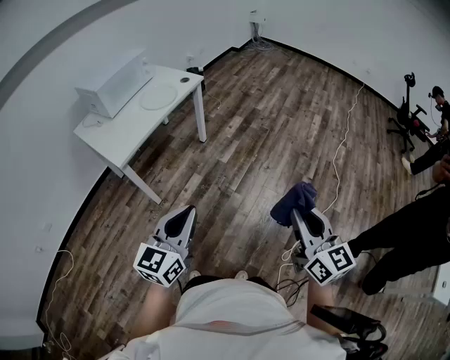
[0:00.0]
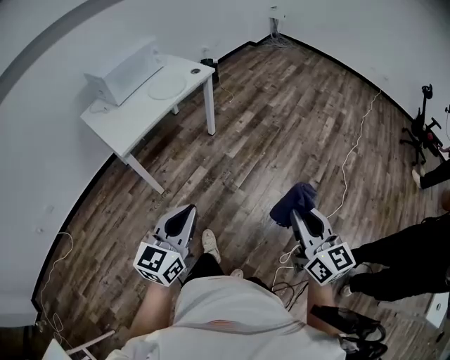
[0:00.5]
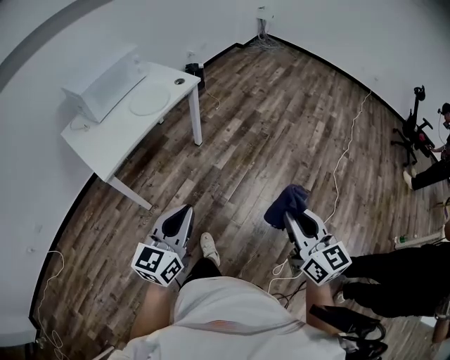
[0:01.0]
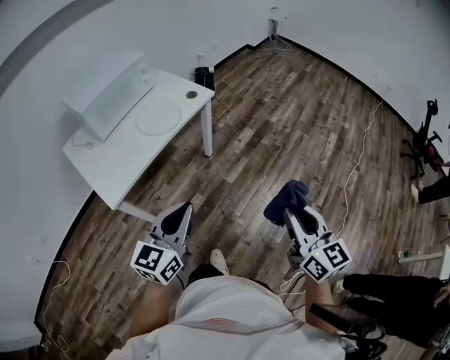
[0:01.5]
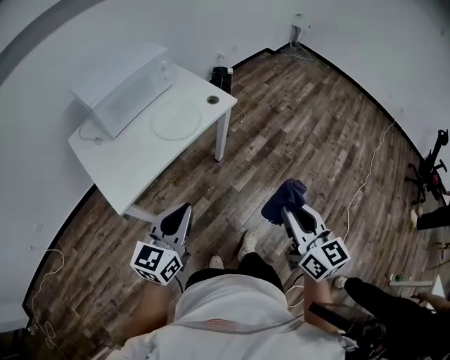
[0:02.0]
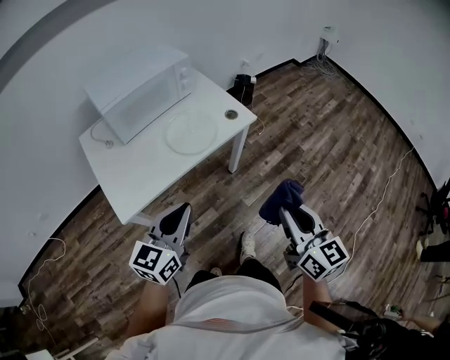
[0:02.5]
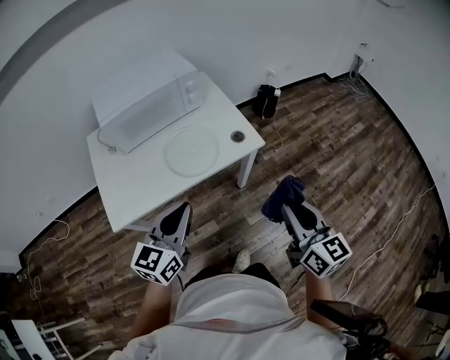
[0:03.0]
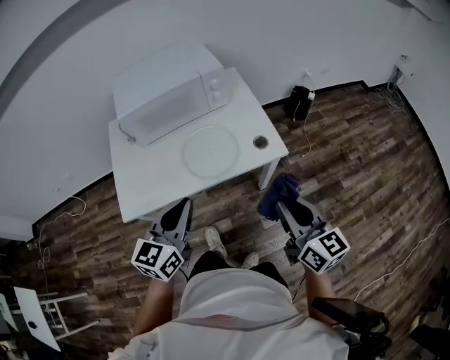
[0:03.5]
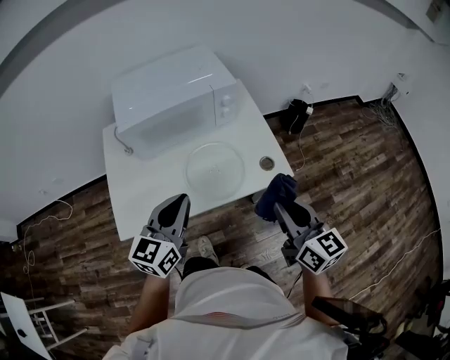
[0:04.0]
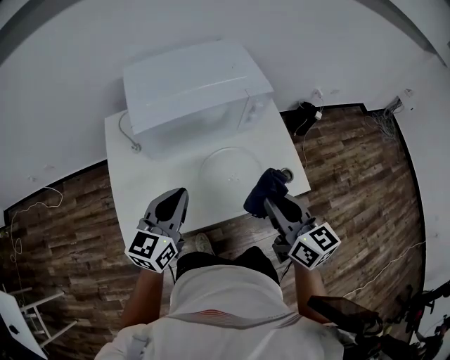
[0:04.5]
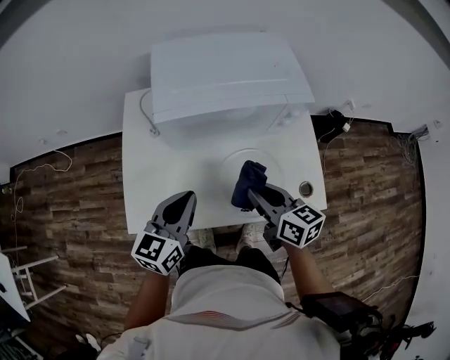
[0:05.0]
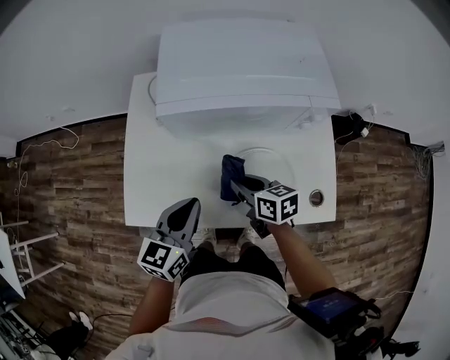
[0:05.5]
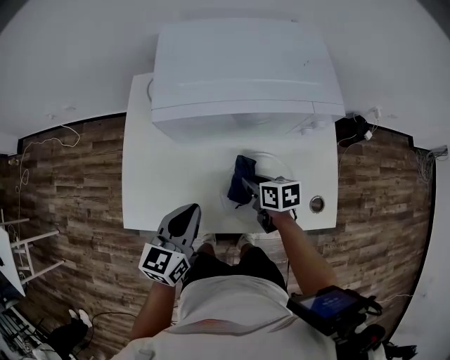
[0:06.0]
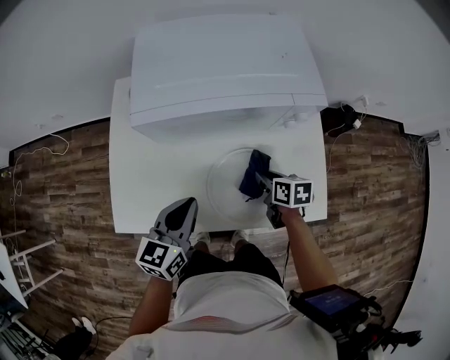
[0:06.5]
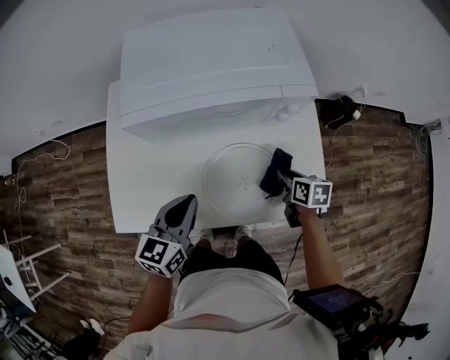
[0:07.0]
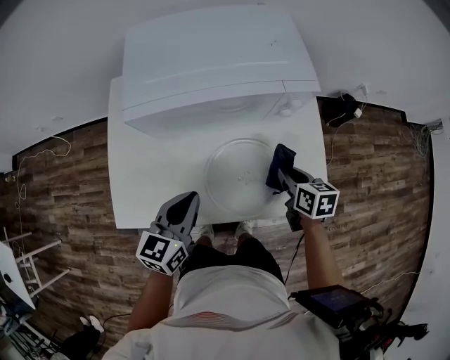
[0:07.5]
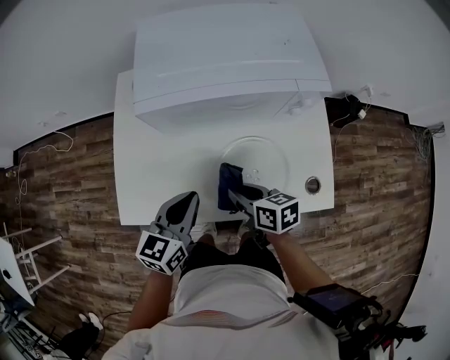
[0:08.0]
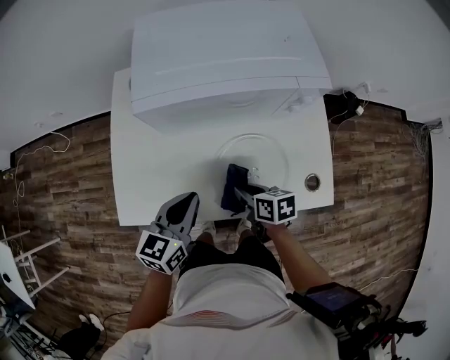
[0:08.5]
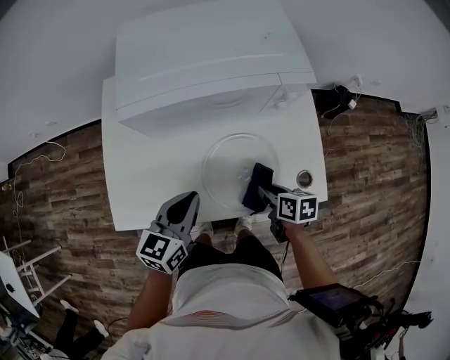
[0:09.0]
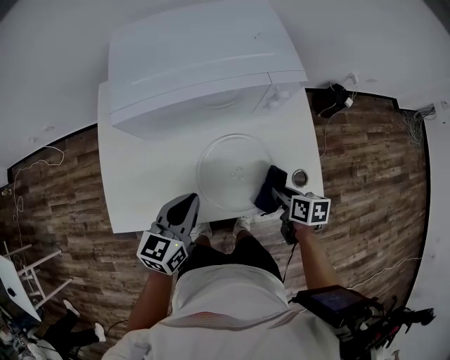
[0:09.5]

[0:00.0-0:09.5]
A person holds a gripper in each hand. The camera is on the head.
0:00.0 to 0:02.0: Both grippers move forward, roughly 40 cm.
0:02.0 to 0:04.0: The left gripper shifts by about 30 cm, and turns by approximately 30 degrees. Meanwhile the right gripper changes place by roughly 40 cm, and swivels some 30 degrees.
0:04.0 to 0:05.5: The left gripper ends up roughly 20 cm from where it was, and swivels about 20 degrees. The right gripper moves roughly 40 cm, and rotates about 50 degrees.
0:05.5 to 0:07.5: The right gripper shifts some 20 cm to the right, and swivels some 20 degrees. Meanwhile the left gripper heads to the right, covering approximately 5 cm.
0:07.5 to 0:09.5: The right gripper is displaced backward by about 10 cm, and travels to the left and back again, about 20 cm each way.

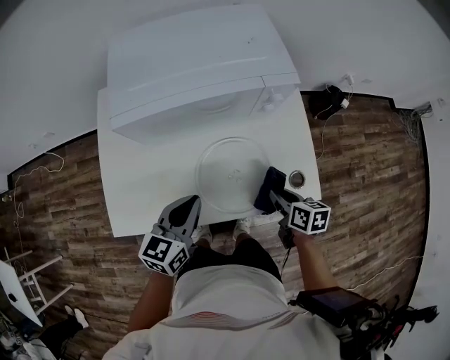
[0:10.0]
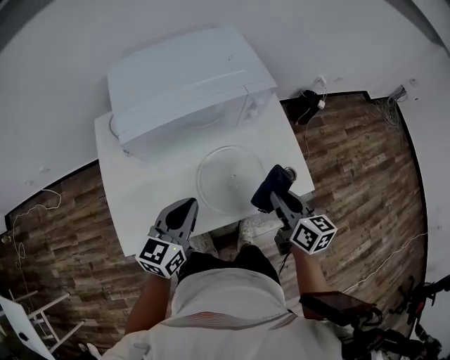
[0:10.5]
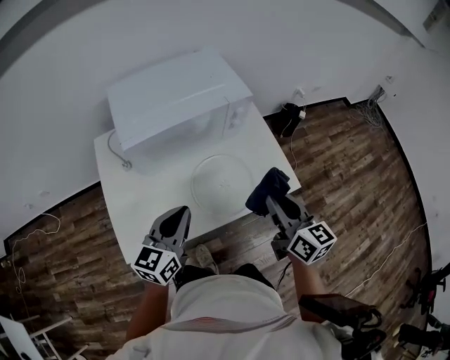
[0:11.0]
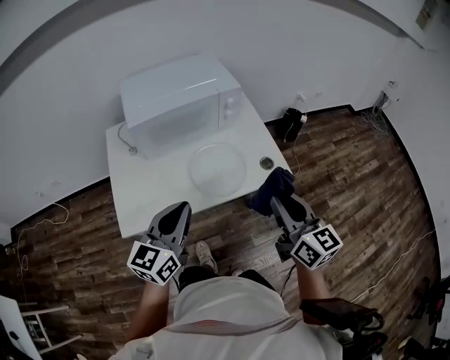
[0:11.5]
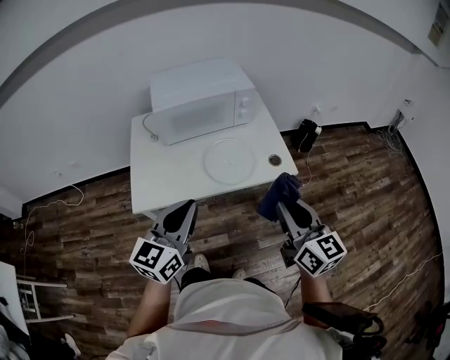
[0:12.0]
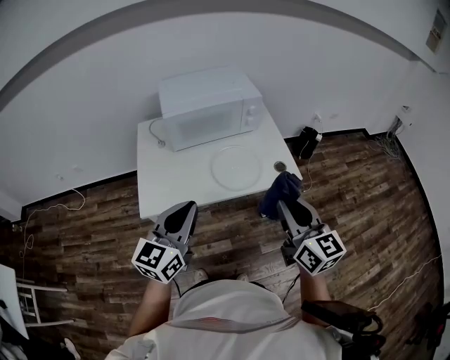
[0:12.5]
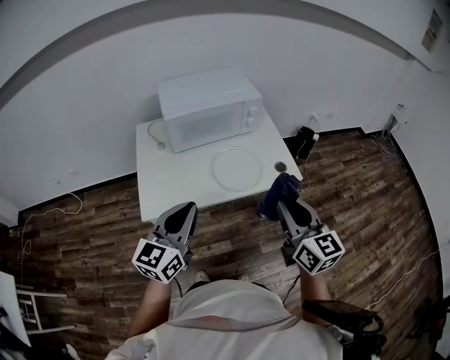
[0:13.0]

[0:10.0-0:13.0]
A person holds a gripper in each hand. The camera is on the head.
0:10.0 to 0:11.5: The left gripper shifts some 20 cm backward and upward; the right gripper heads upward and backward, covering some 35 cm, and tips its fingers upward by roughly 40 degrees.
0:11.5 to 0:13.0: The right gripper goes about 10 cm backward, while the left gripper heads backward, to the left and upward, covering some 10 cm.

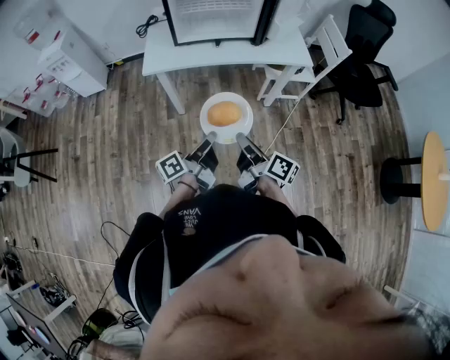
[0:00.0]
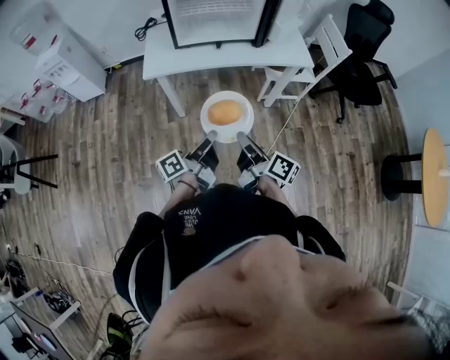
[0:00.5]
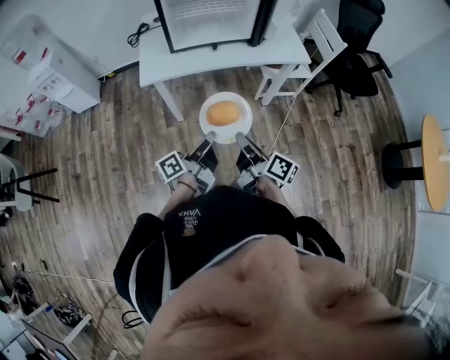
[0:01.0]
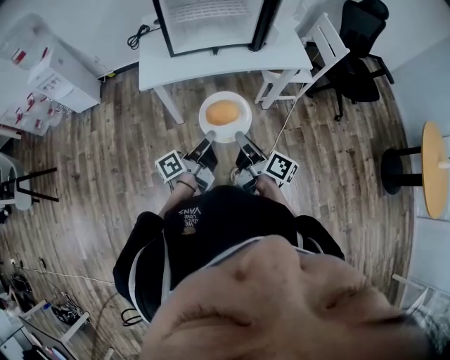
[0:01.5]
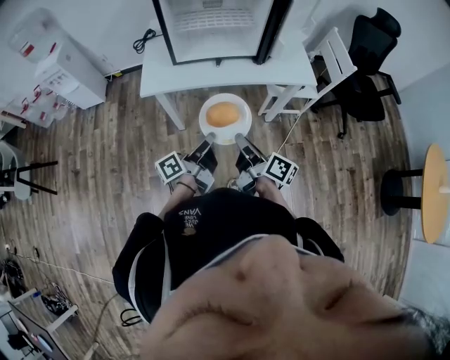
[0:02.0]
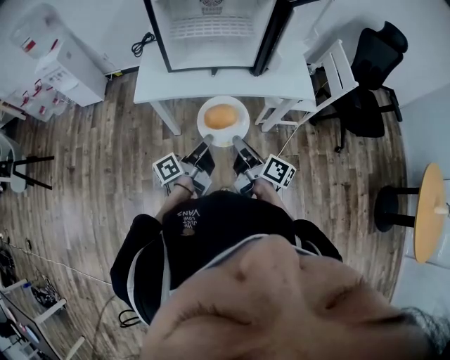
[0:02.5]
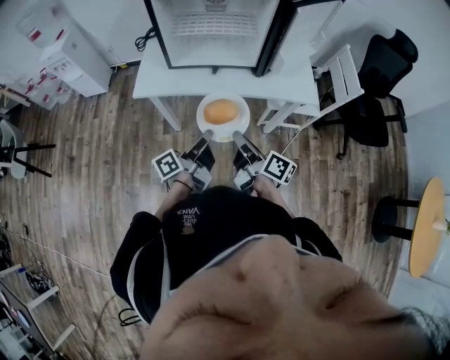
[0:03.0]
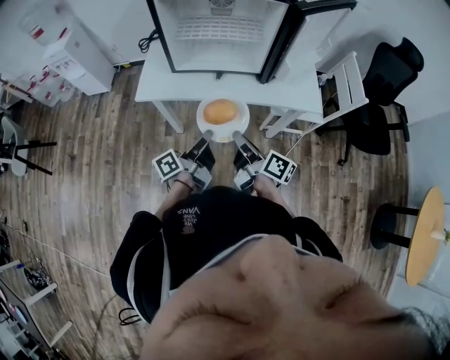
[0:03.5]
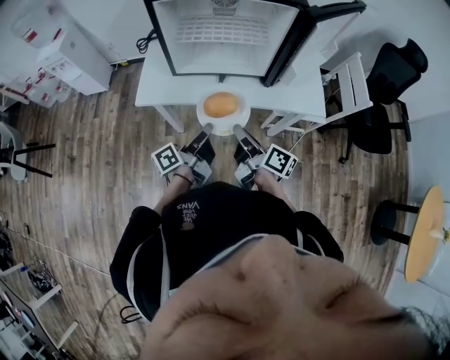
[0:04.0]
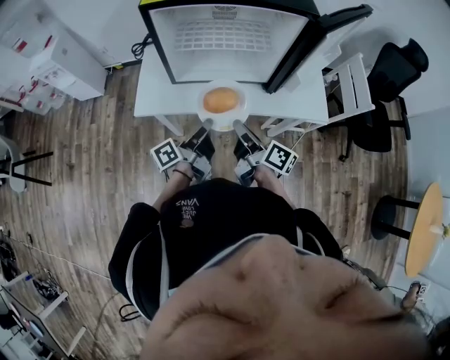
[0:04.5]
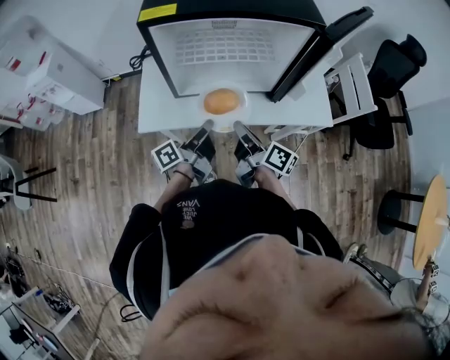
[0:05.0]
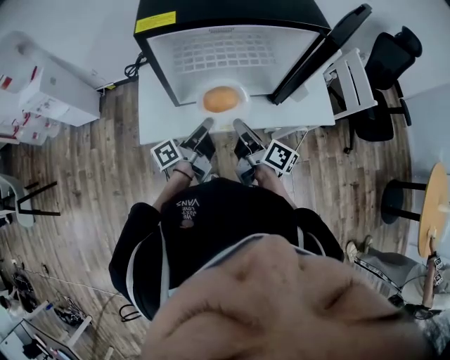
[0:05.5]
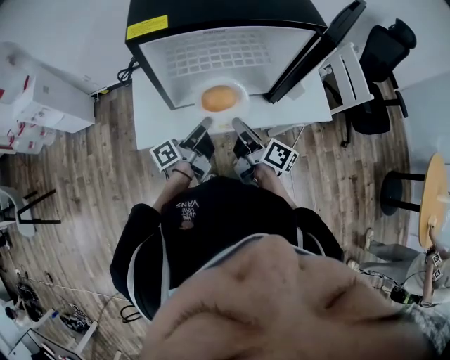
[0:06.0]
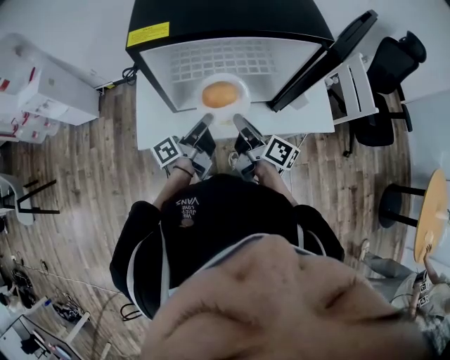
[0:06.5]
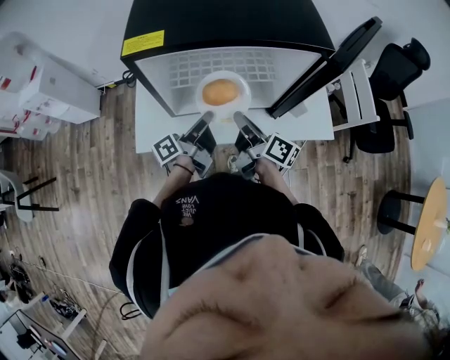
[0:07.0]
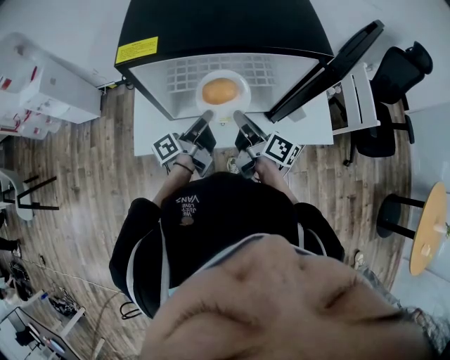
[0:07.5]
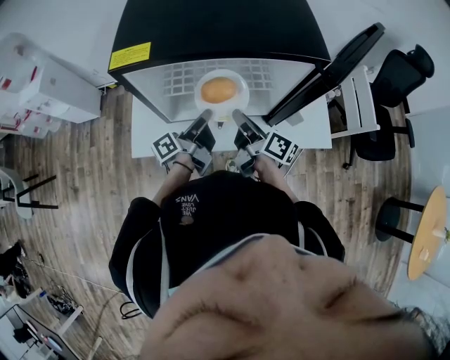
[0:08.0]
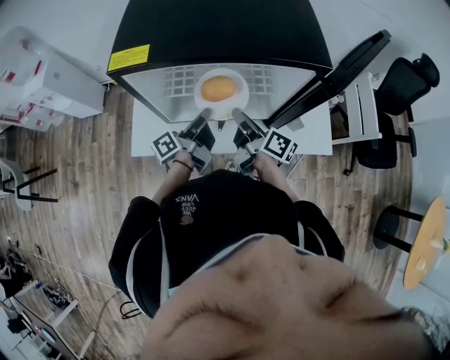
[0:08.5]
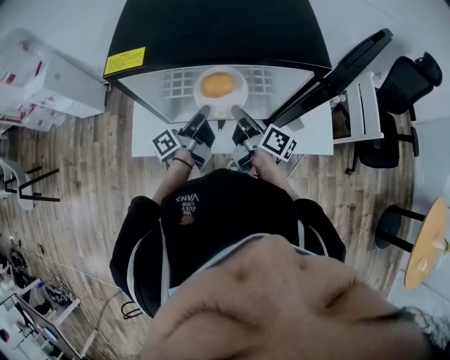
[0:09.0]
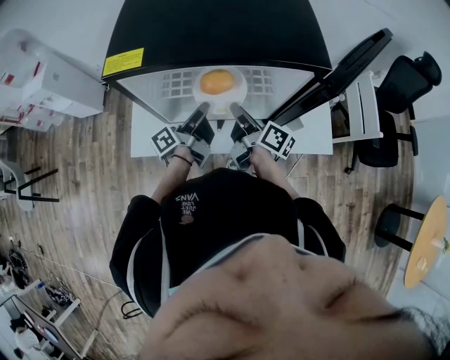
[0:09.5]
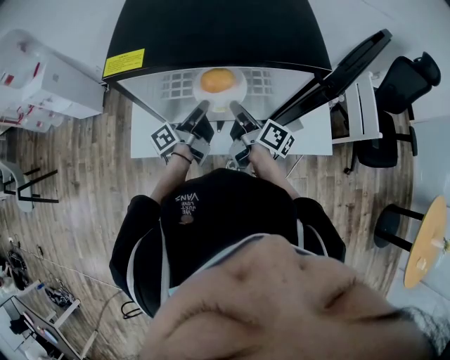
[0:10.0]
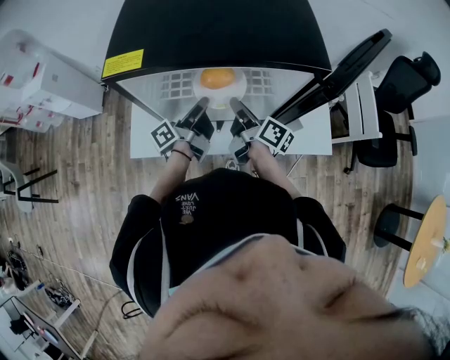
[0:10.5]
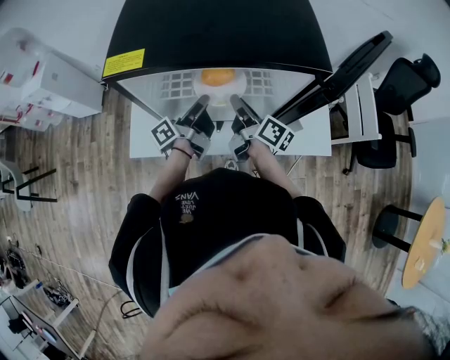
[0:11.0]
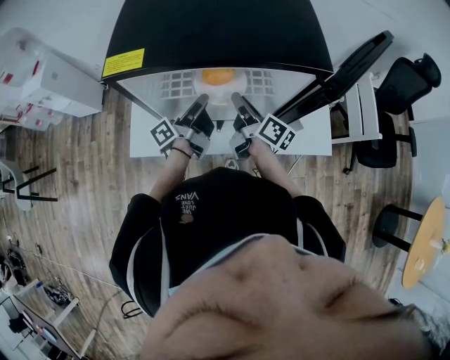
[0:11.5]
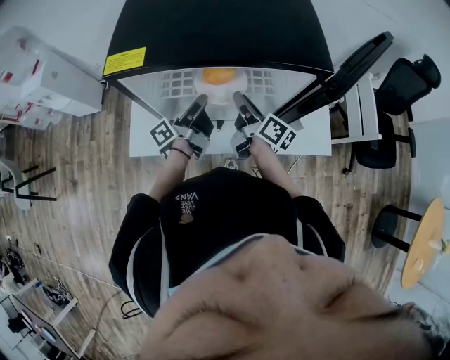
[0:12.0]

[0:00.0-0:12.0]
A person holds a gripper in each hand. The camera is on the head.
0:00.0 to 0:02.0: The grippers both shift forward by some 10 cm.
0:02.0 to 0:04.0: Both grippers travel together forward, approximately 15 cm.
0:04.0 to 0:06.0: The left gripper shifts about 15 cm forward; the right gripper moves forward and to the left, some 15 cm.
0:06.0 to 0:08.0: Both grippers travel together forward, about 10 cm.
0:08.0 to 0:10.0: The grippers make only small movements.
0:10.0 to 0:12.0: The grippers move only a little.

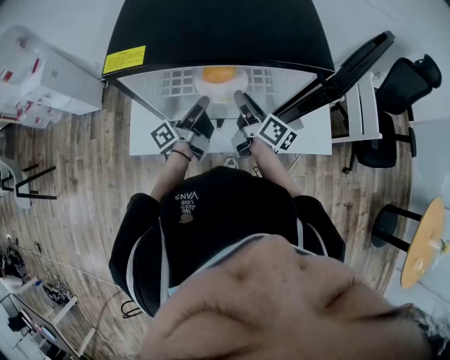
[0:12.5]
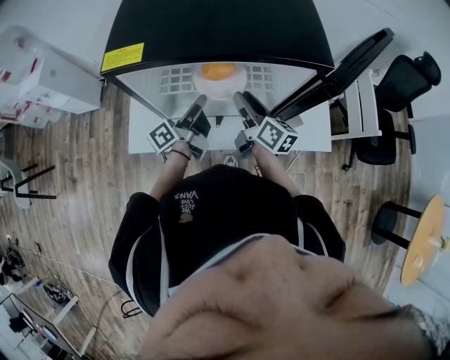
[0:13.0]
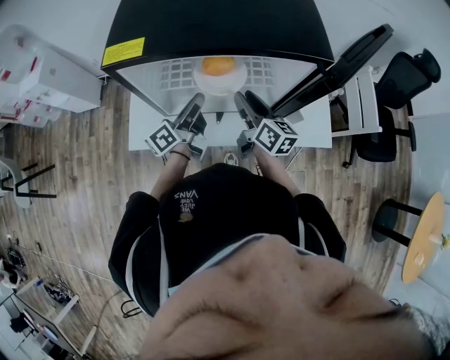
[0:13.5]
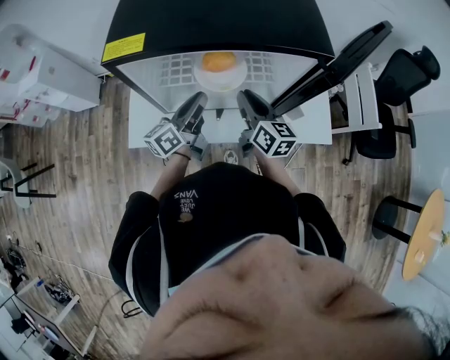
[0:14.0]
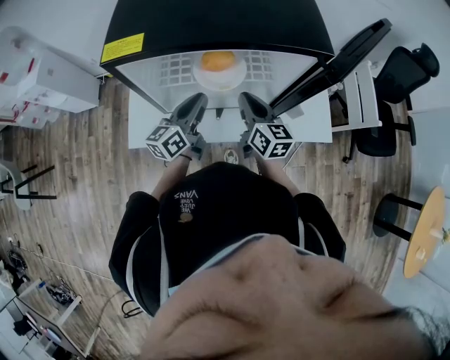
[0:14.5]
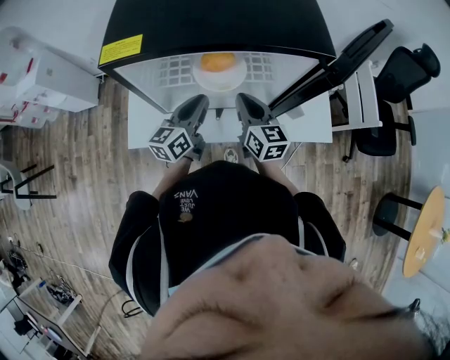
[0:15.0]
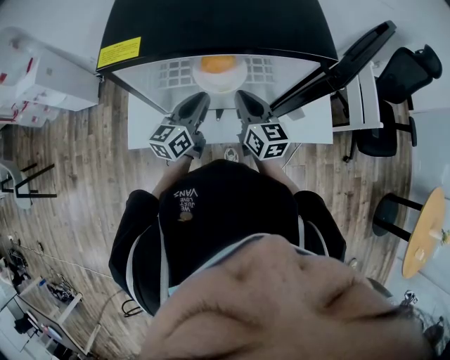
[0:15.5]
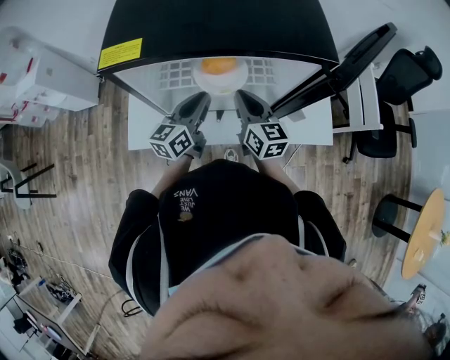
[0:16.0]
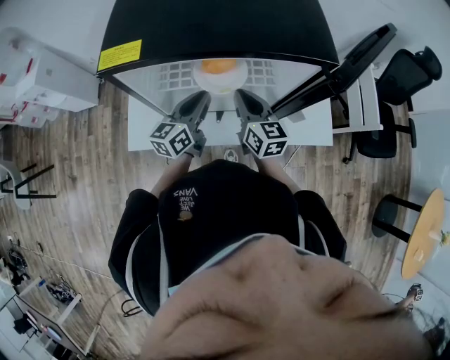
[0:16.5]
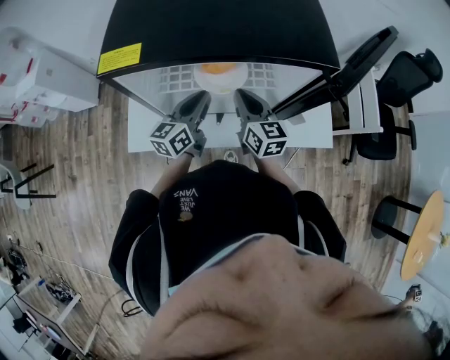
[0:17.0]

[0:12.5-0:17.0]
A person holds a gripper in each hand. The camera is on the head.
0:12.5 to 0:14.5: The right gripper changes its angle by about 40 degrees; the left gripper twists some 50 degrees clockwise, seen from behind.
0:14.5 to 0:17.0: There are only small adjustments of the grippers.
